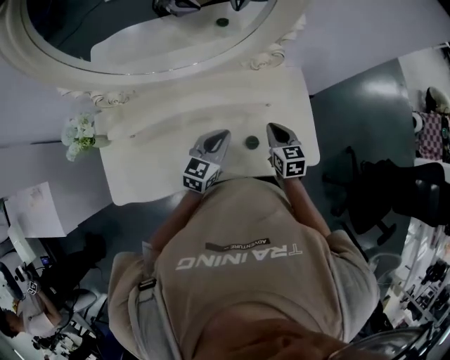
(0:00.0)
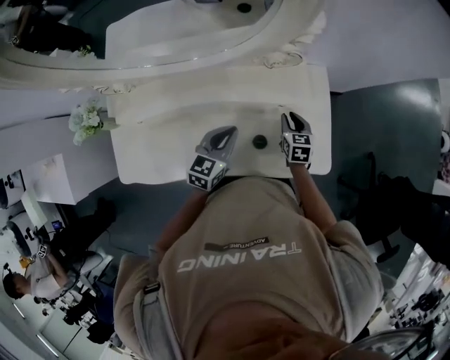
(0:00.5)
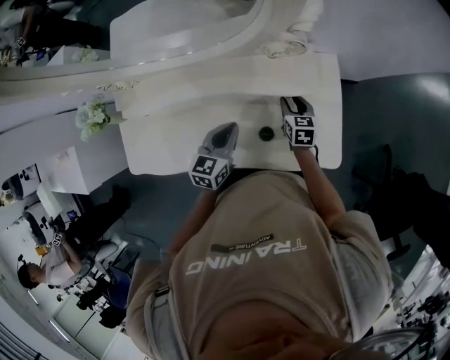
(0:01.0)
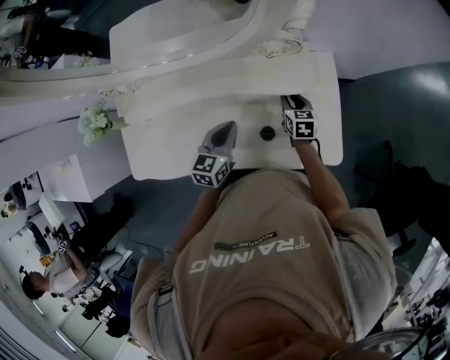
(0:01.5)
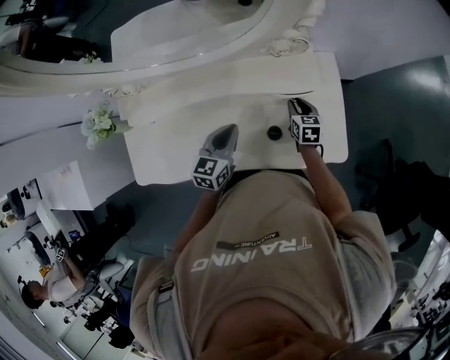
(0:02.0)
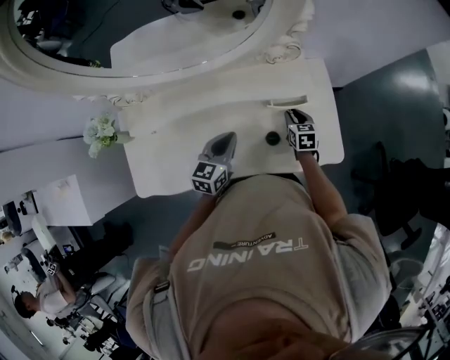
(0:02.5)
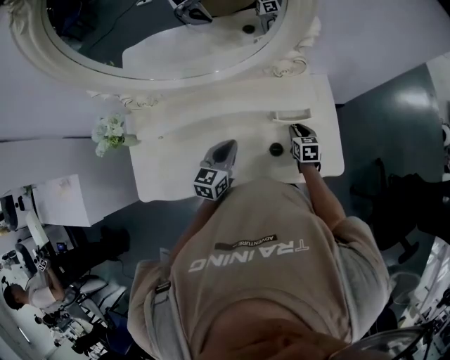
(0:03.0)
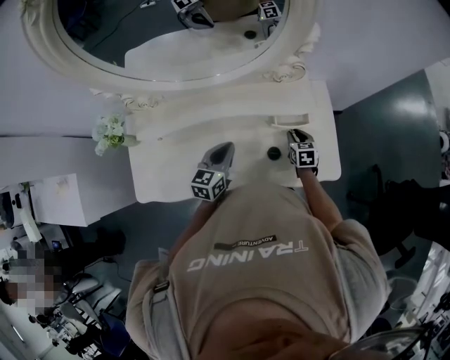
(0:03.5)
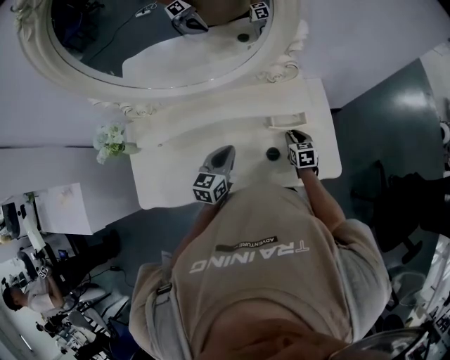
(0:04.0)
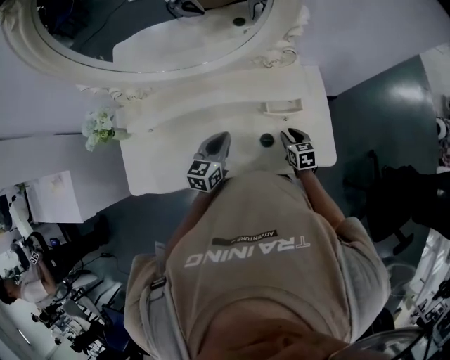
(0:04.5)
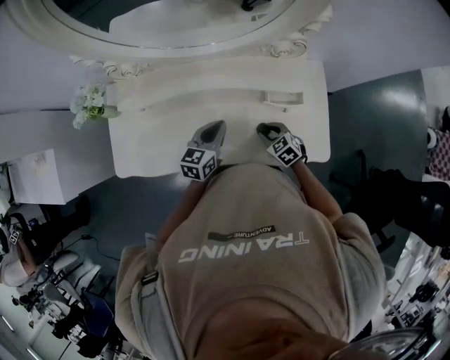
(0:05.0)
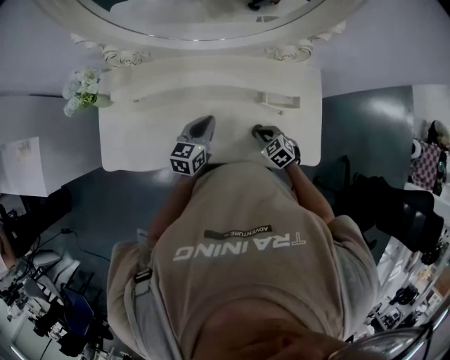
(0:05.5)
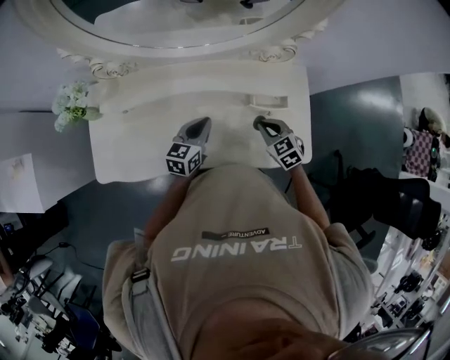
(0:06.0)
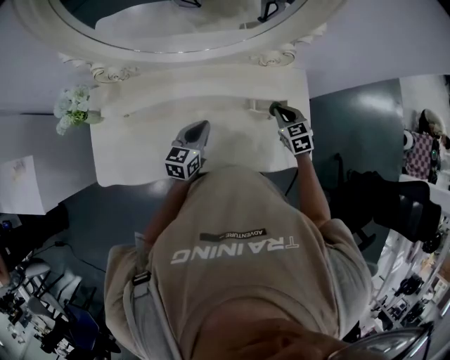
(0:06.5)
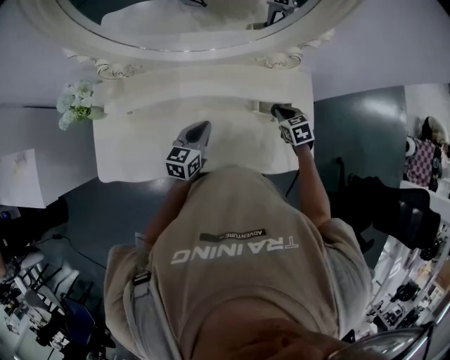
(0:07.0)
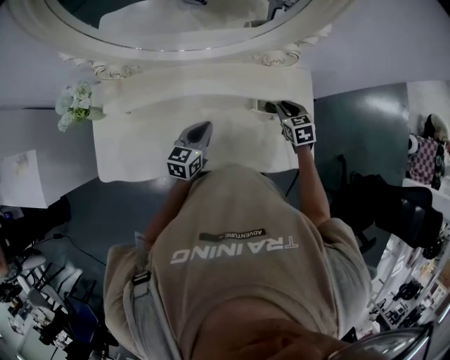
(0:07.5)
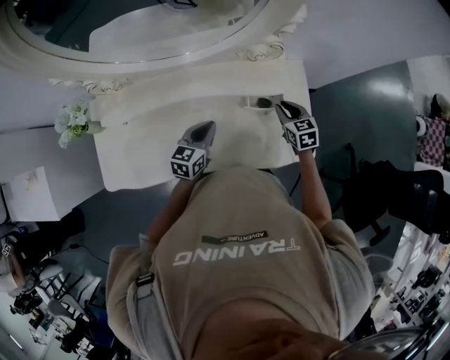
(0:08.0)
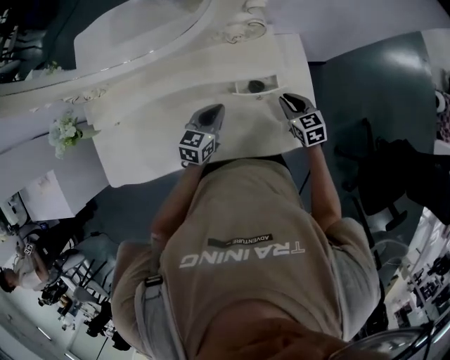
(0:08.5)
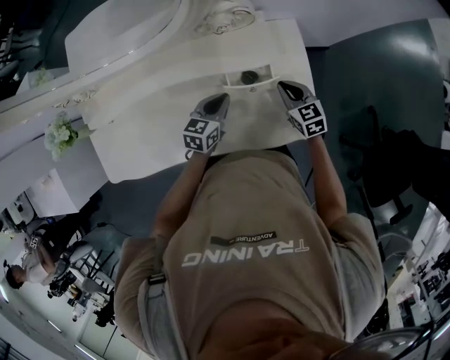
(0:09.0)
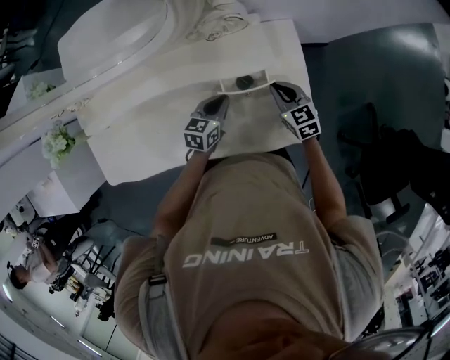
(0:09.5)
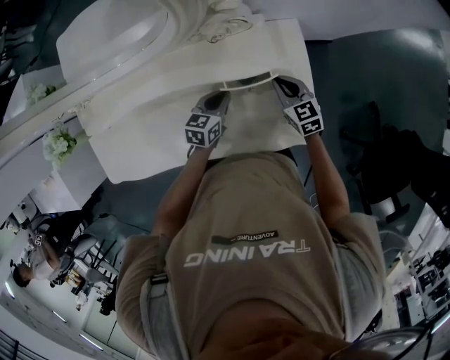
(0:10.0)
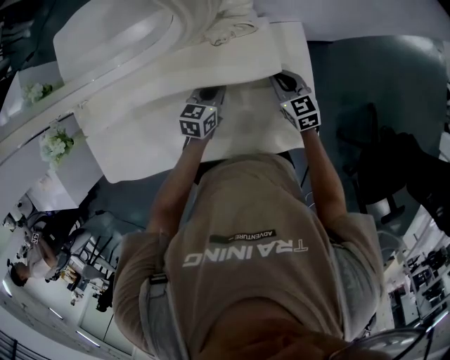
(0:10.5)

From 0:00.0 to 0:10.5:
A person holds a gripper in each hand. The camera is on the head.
From 0:00.0 to 0:02.0: The right gripper shifts about 15 cm downward and forward, and opens its fingers.
From 0:02.0 to 0:04.0: The grippers move only a little.
From 0:04.0 to 0:06.5: The right gripper is displaced upward by approximately 10 cm, goes backward and returns, approximately 10 cm each way, swivels some 30 degrees, and closes its fingers.
From 0:06.5 to 0:08.5: The left gripper moves to the right, about 15 cm, while the right gripper moves to the right and downward, approximately 10 cm.
From 0:08.5 to 0:10.5: The right gripper goes about 10 cm forward. The left gripper heads forward and downward, covering about 10 cm.

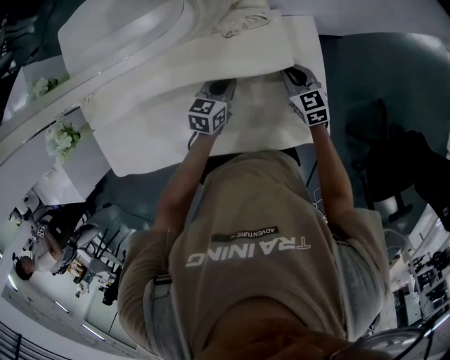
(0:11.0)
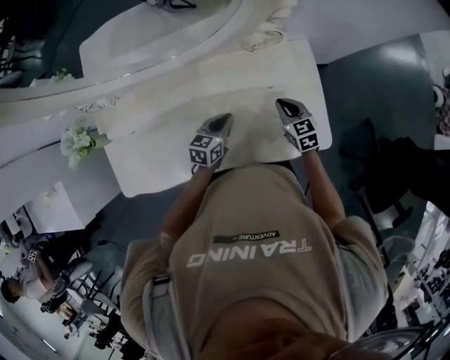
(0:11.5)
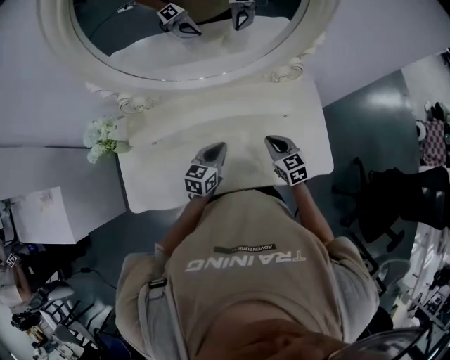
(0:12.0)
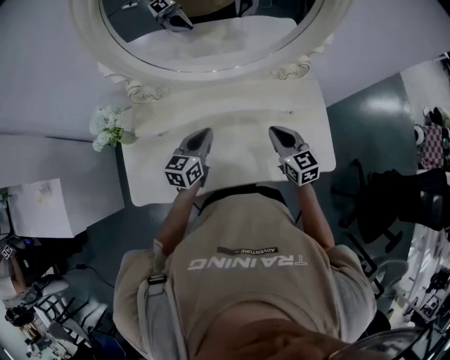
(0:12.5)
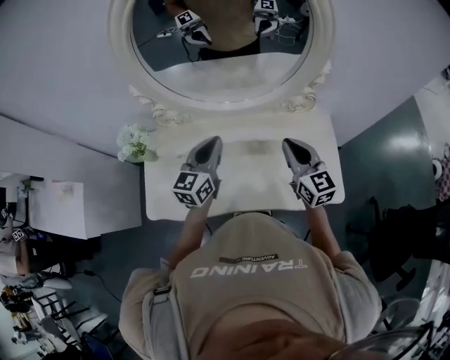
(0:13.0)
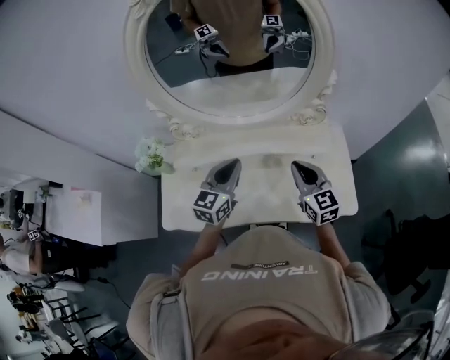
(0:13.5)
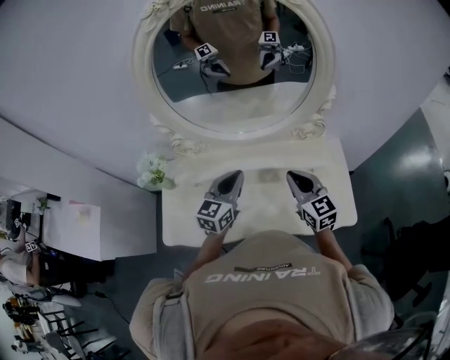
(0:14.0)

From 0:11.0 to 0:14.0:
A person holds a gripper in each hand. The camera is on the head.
From 0:11.0 to 0:12.5: The grippers both shift to the left, upward and backward by about 40 cm. The left gripper changes its angle by approximately 20 degrees.
From 0:12.5 to 0:14.0: The two grippers go roughly 10 cm upward.

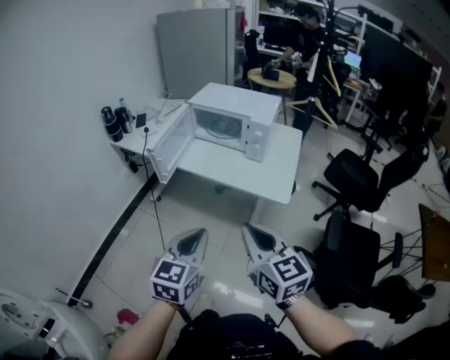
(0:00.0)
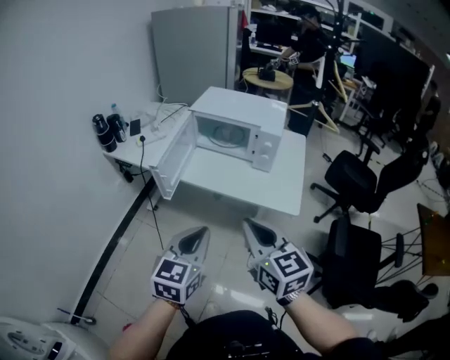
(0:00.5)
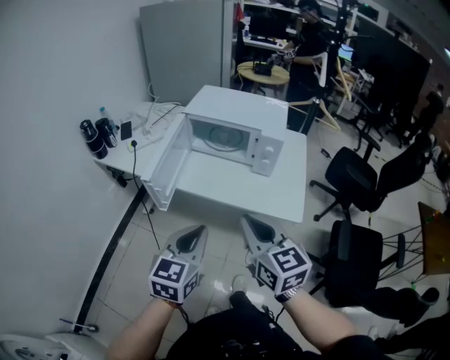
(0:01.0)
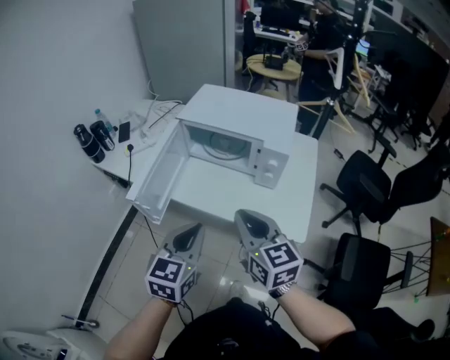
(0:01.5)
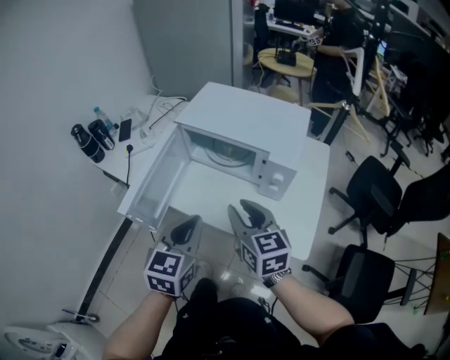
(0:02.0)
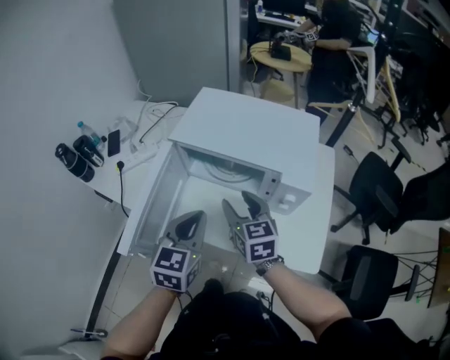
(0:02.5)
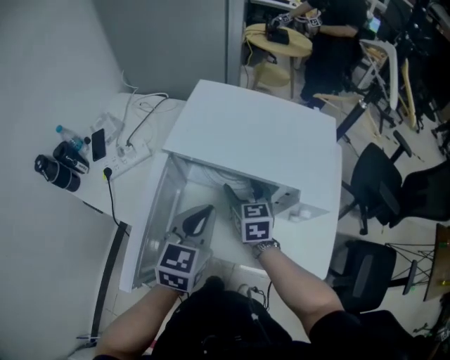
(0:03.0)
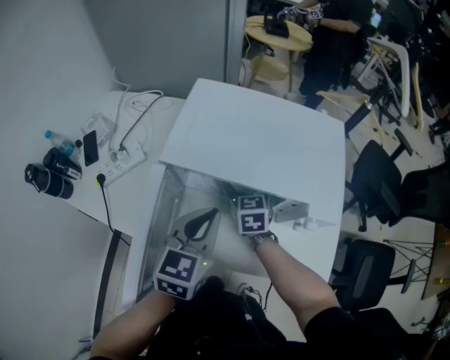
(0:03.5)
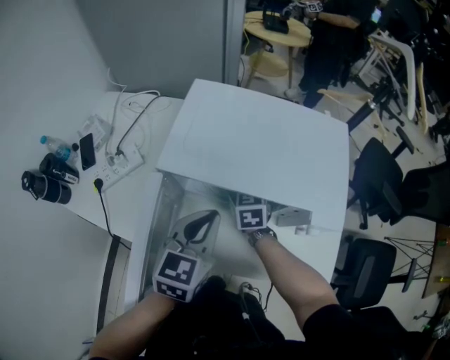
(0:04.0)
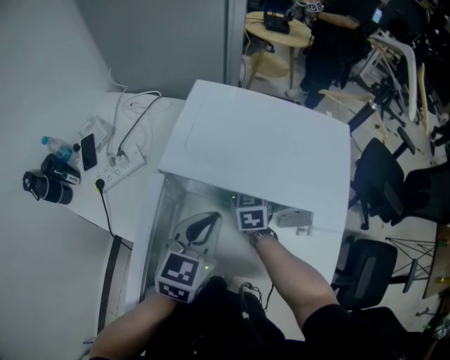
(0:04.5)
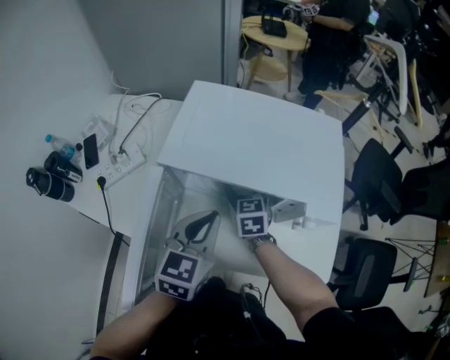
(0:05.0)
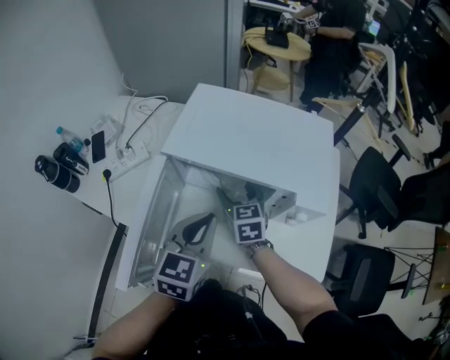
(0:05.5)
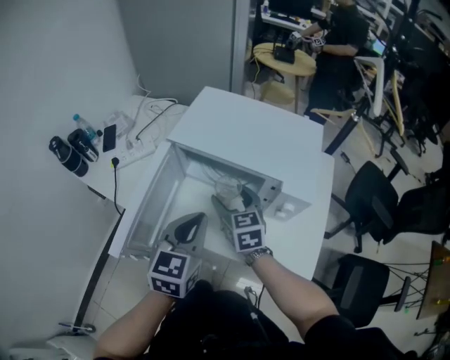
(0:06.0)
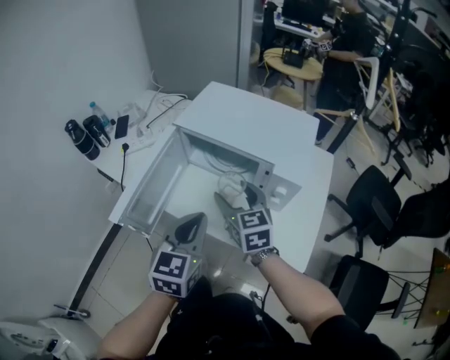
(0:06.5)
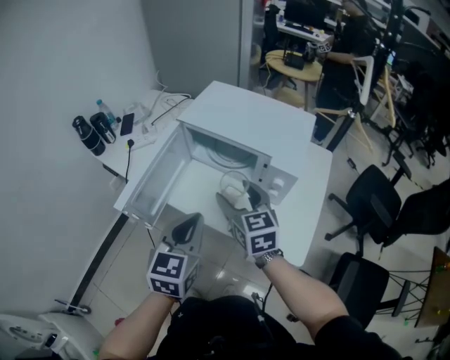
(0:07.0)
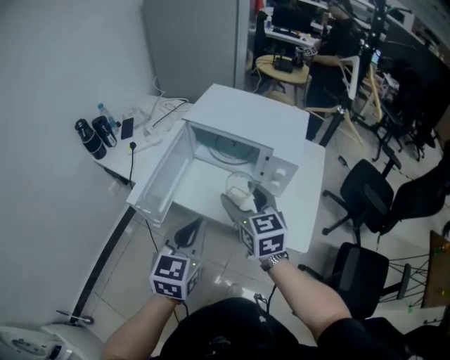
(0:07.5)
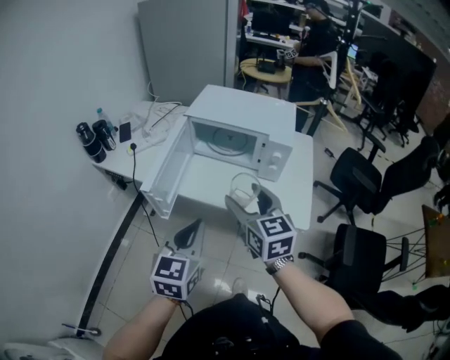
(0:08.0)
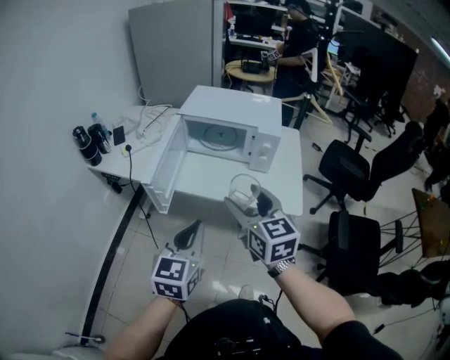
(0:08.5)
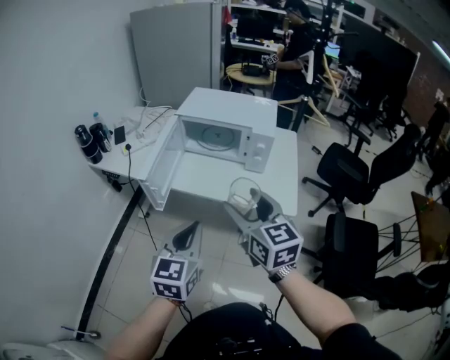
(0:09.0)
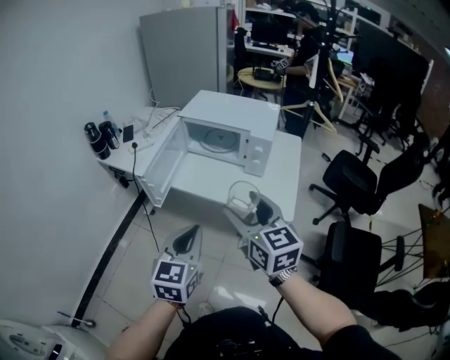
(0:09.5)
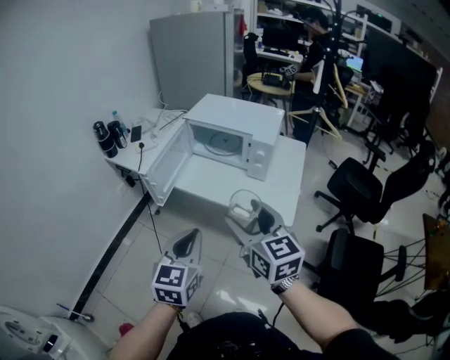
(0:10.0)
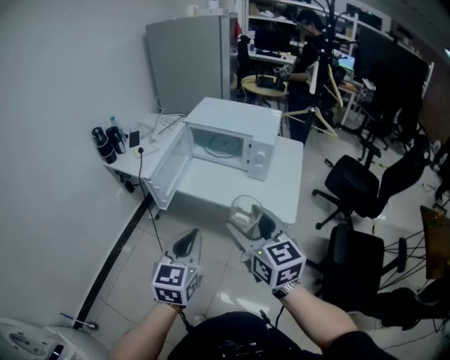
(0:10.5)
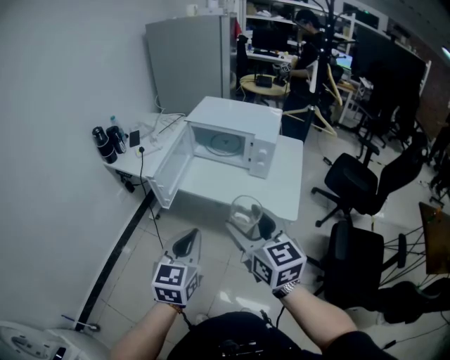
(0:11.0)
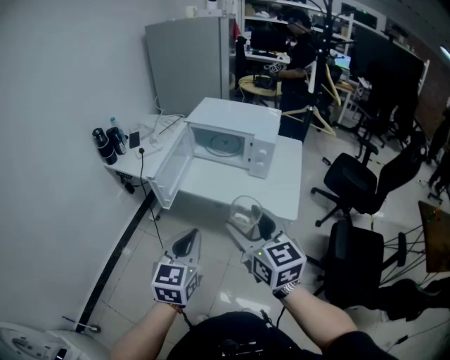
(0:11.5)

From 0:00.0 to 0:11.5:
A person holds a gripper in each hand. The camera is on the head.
From 0:00.0 to 0:02.0: Both grippers move forward, roughly 35 cm. The right gripper opens its fingers.
From 0:02.0 to 0:04.0: The right gripper travels forward and downward by roughly 35 cm, turns by about 30 degrees, and opens. The left gripper moves forward, approximately 20 cm.
From 0:04.0 to 0:06.0: The right gripper moves backward and upward, about 15 cm. The left gripper goes some 10 cm backward.
From 0:06.0 to 0:07.5: The right gripper shifts approximately 20 cm backward and upward. The left gripper goes some 15 cm backward.
From 0:07.5 to 0:09.5: The left gripper moves backward, about 15 cm, while the right gripper goes some 20 cm backward and upward.
From 0:09.5 to 0:11.5: The right gripper moves backward, some 5 cm.

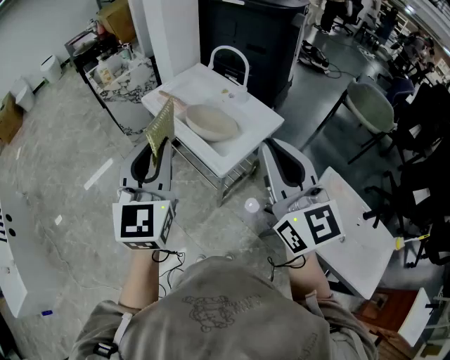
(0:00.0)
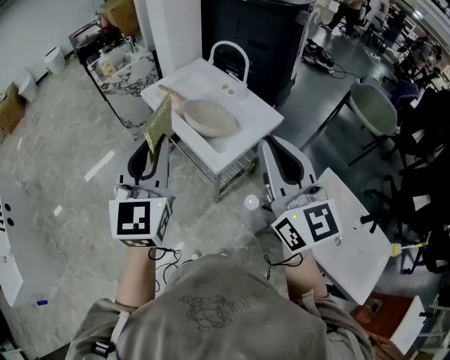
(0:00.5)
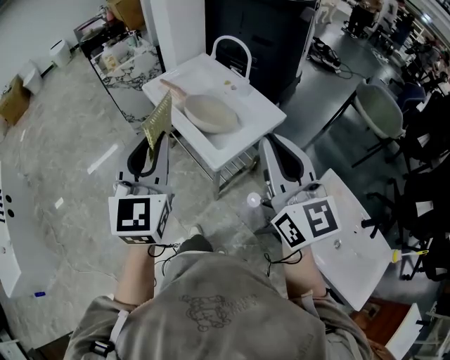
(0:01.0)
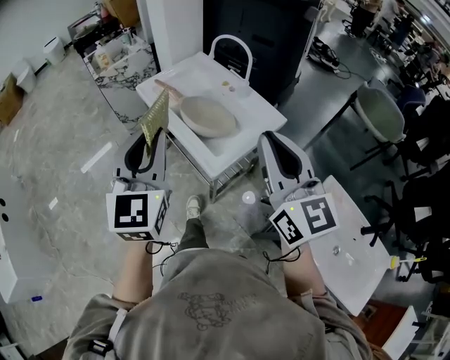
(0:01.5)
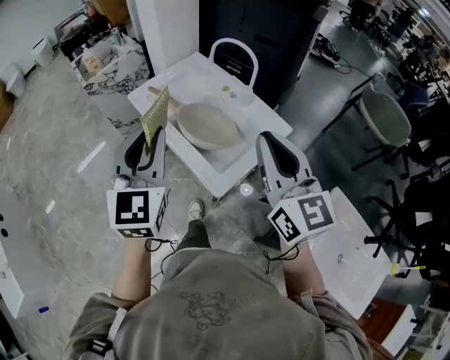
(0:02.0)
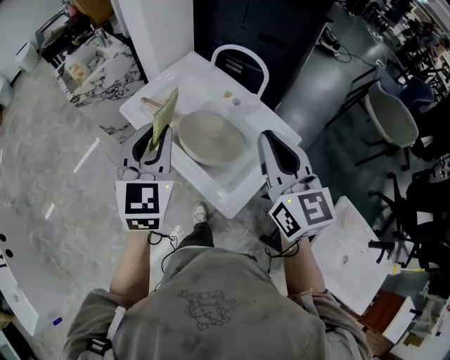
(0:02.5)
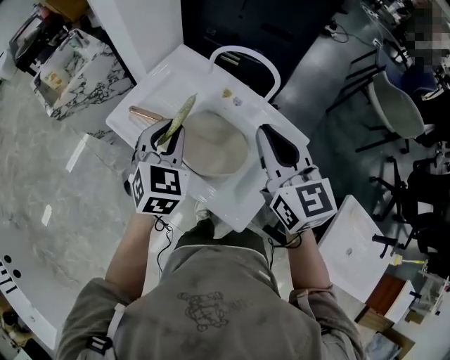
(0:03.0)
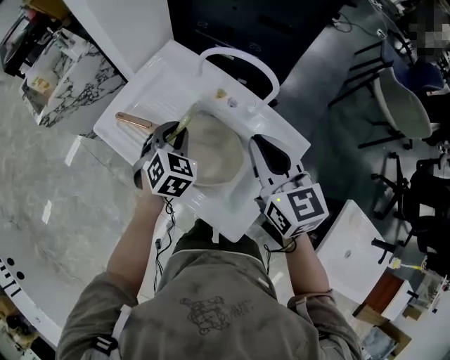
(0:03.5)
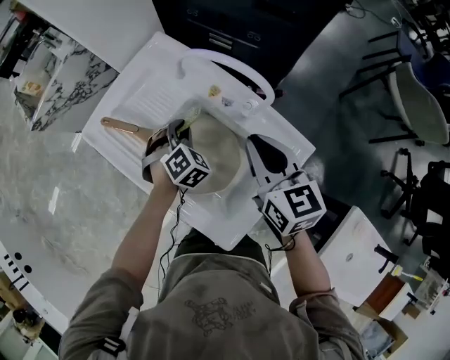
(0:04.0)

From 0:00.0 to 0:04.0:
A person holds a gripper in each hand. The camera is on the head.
From 0:00.0 to 0:02.0: The two grippers go some 20 cm forward.
From 0:02.0 to 0:04.0: The left gripper heads downward and forward, covering about 50 cm, and tilts its fingers some 50 degrees downward. The right gripper goes roughly 40 cm forward and downward, and turns by roughly 30 degrees.
